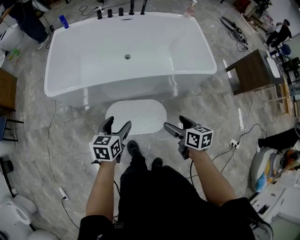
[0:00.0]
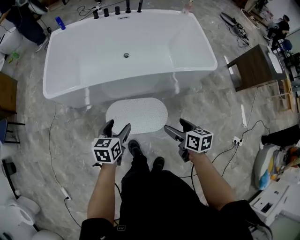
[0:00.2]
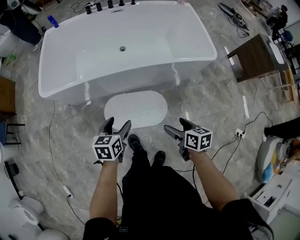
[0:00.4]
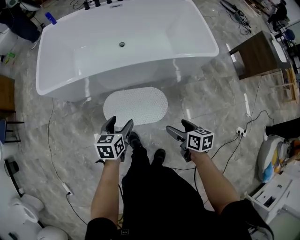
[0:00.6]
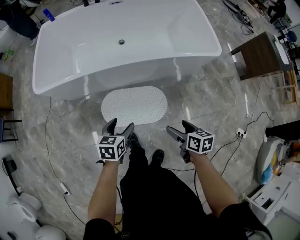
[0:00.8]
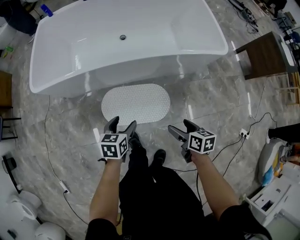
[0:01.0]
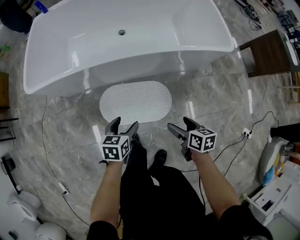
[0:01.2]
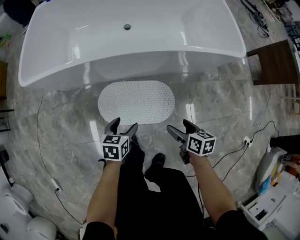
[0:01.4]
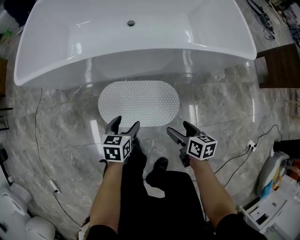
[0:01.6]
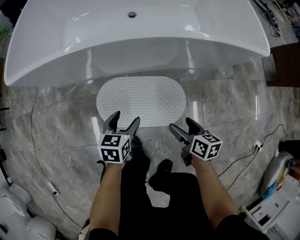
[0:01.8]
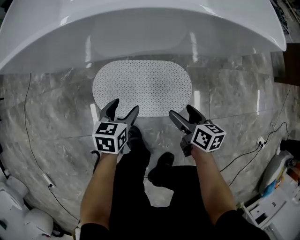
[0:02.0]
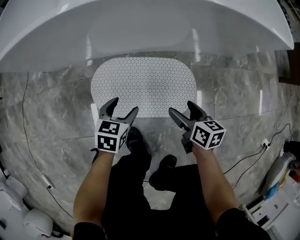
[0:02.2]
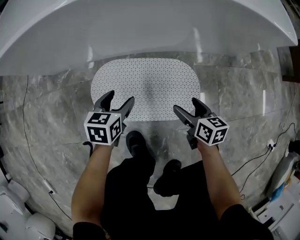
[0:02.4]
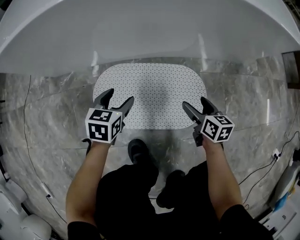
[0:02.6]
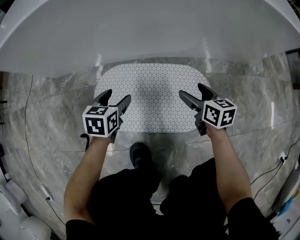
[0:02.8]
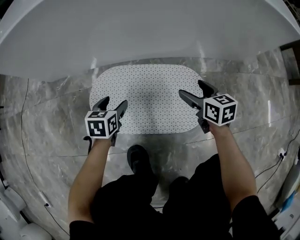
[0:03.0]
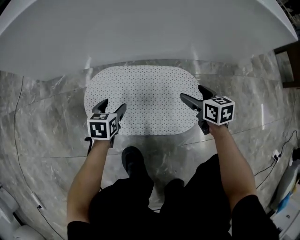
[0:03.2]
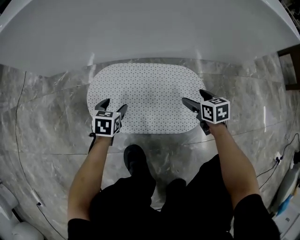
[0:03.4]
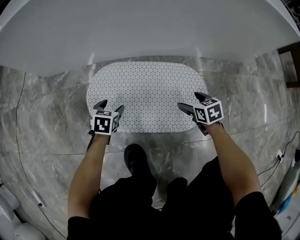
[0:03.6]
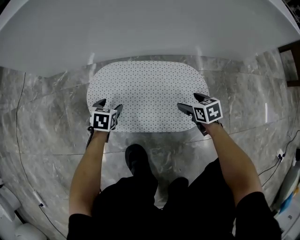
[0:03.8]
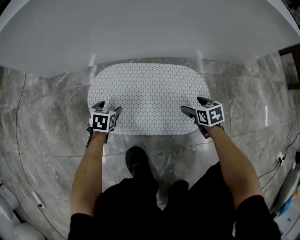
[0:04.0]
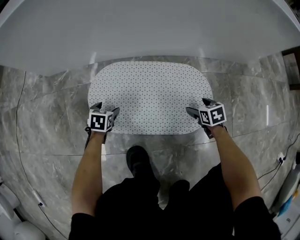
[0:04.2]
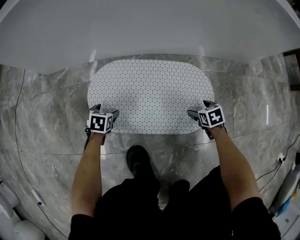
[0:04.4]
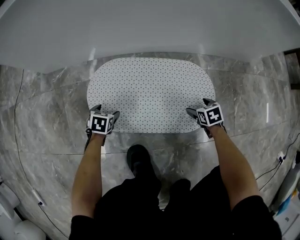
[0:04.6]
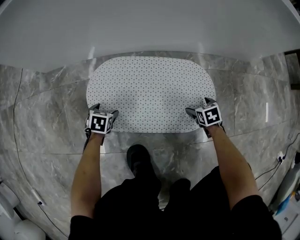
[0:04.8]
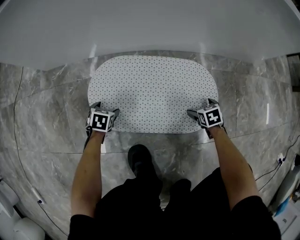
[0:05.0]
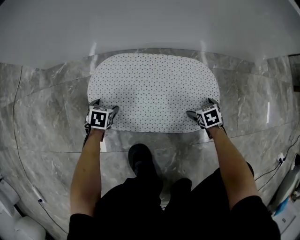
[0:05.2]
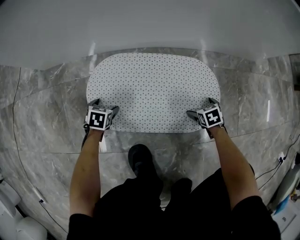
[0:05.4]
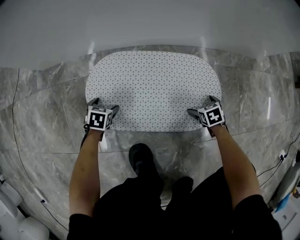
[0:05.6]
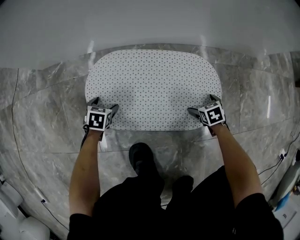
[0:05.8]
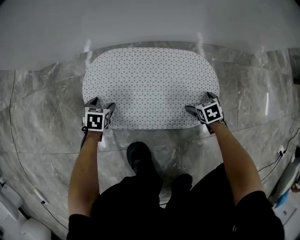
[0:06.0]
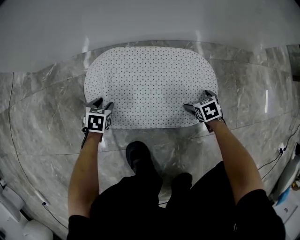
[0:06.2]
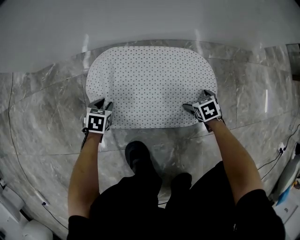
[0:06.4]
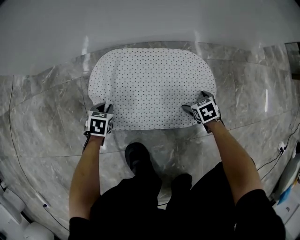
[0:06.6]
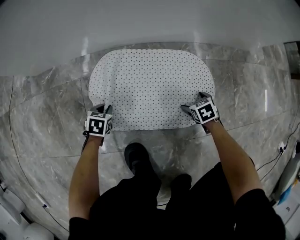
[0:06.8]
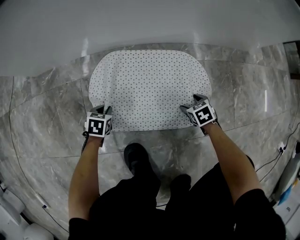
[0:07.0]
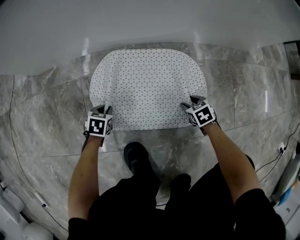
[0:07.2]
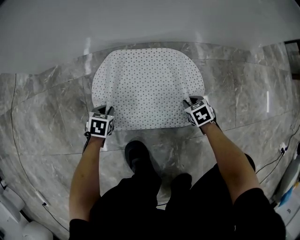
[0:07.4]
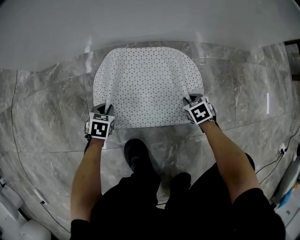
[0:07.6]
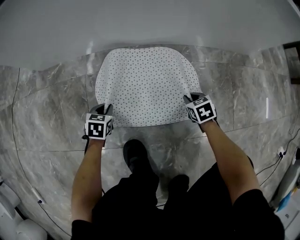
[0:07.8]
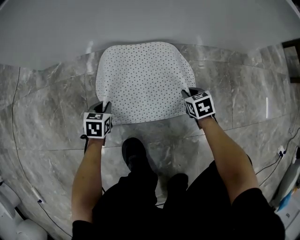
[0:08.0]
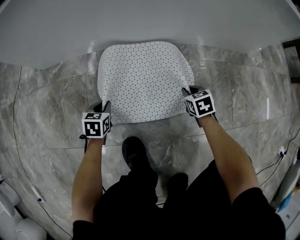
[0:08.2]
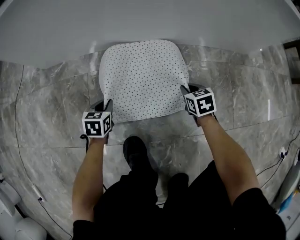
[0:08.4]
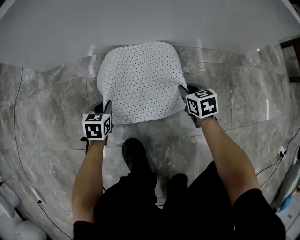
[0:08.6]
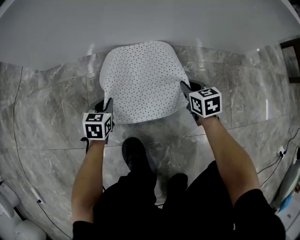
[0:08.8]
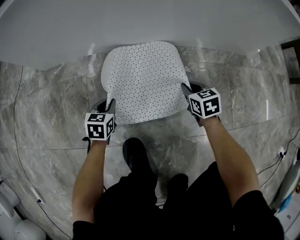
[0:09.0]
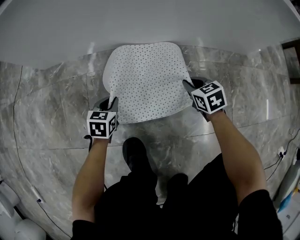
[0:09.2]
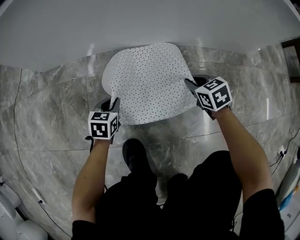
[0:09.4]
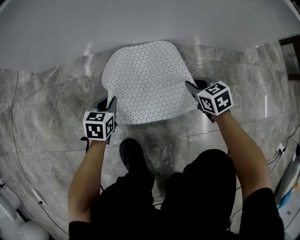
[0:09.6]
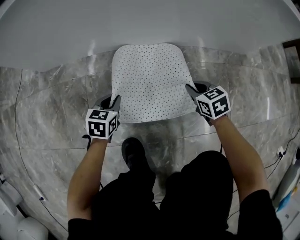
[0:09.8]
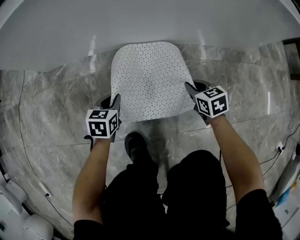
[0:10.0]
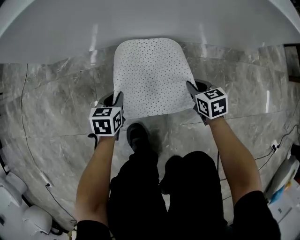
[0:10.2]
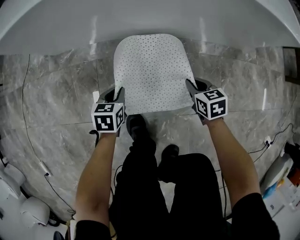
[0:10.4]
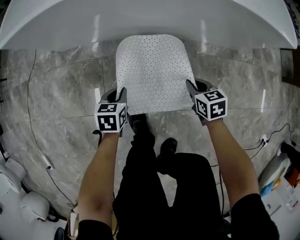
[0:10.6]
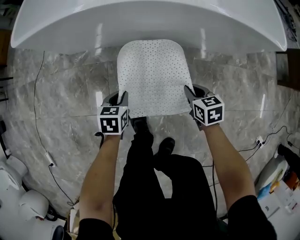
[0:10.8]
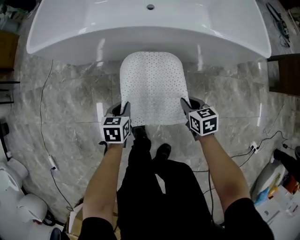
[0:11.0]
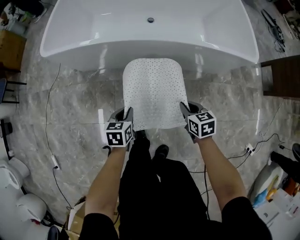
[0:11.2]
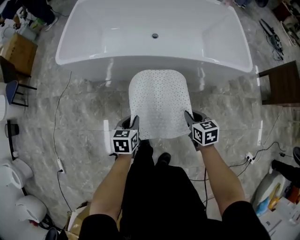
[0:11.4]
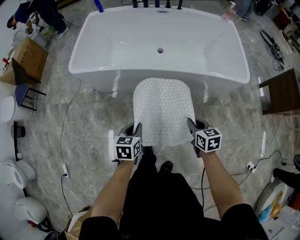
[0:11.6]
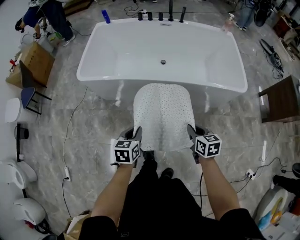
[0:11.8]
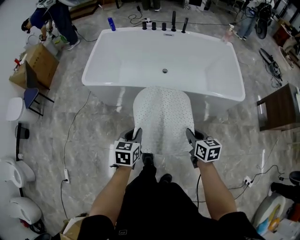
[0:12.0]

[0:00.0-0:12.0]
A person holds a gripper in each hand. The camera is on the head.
0.0 to 1.6 s: The two grippers go roughly 30 cm downward.
1.6 to 3.0 s: The right gripper moves downward and forward, about 30 cm, and rotates about 20 degrees, while the left gripper is displaced downward by some 30 cm.
3.0 to 4.4 s: The right gripper travels downward and backward by approximately 20 cm, and turns by roughly 30 degrees. The left gripper moves downward and to the left, some 20 cm.
4.4 to 6.0 s: The grippers move only a little.
6.0 to 7.6 s: The right gripper closes up. The left gripper closes up.
7.6 to 9.0 s: The right gripper goes about 10 cm upward and forward, and rotates some 20 degrees. The left gripper shifts some 10 cm upward.
9.0 to 10.4 s: The two grippers go roughly 15 cm upward.
10.4 to 12.0 s: Both grippers move upward, approximately 50 cm. The right gripper changes its angle by roughly 20 degrees.

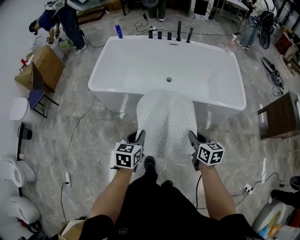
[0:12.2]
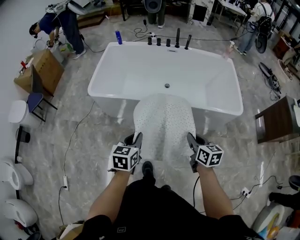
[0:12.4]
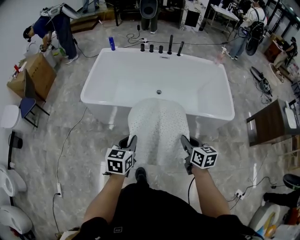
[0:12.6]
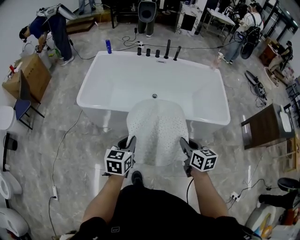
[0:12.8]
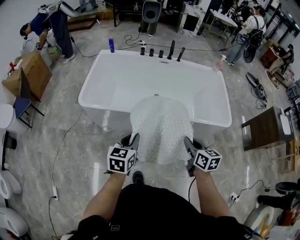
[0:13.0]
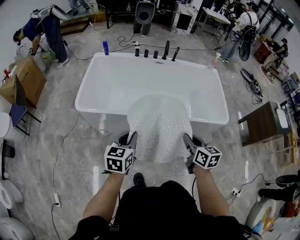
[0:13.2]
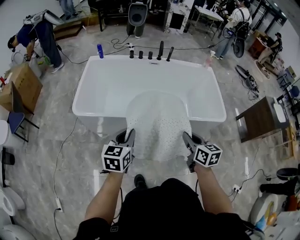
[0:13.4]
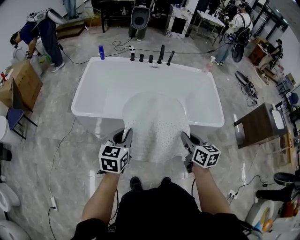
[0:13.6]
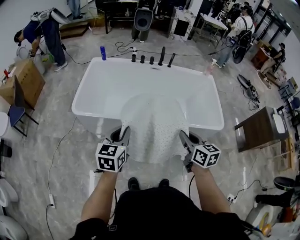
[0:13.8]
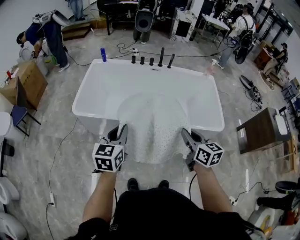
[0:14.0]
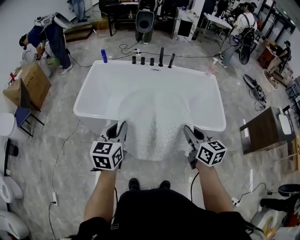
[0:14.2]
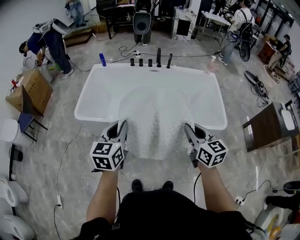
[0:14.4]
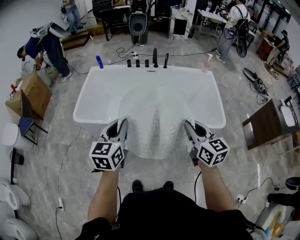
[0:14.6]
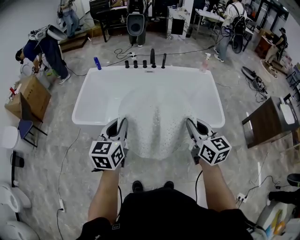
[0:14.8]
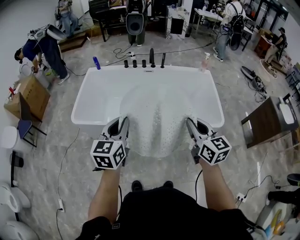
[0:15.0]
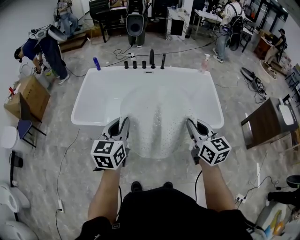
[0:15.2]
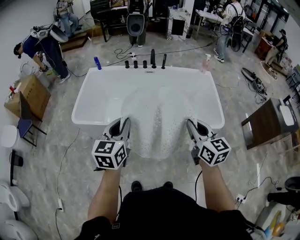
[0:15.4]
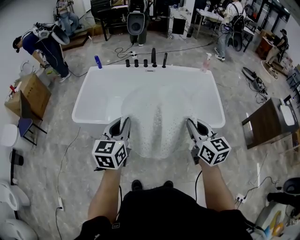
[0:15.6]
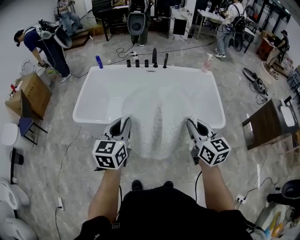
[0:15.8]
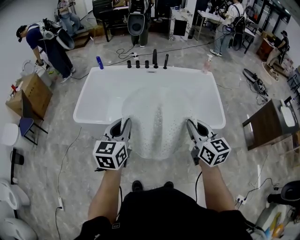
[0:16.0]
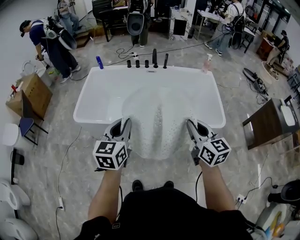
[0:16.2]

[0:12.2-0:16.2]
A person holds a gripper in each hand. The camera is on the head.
12.2 to 13.6 s: The left gripper is displaced forward and upward by approximately 15 cm, while the right gripper goes some 15 cm upward and forward.
13.6 to 14.8 s: Both grippers move upward and to the right, about 15 cm.
14.8 to 16.2 s: Both grippers stay put.

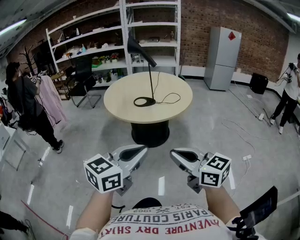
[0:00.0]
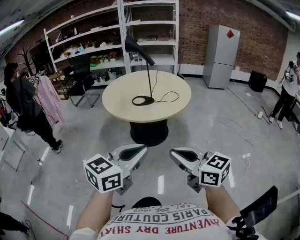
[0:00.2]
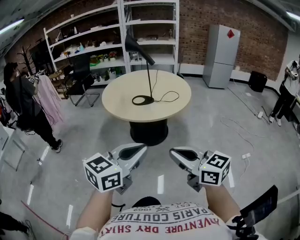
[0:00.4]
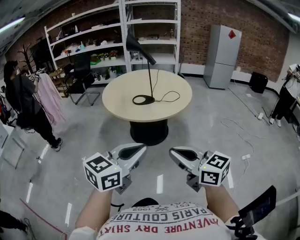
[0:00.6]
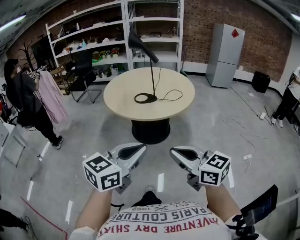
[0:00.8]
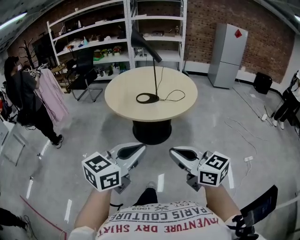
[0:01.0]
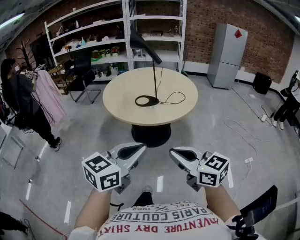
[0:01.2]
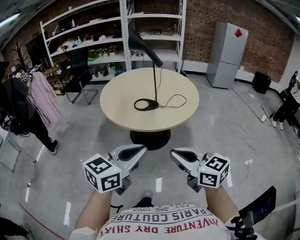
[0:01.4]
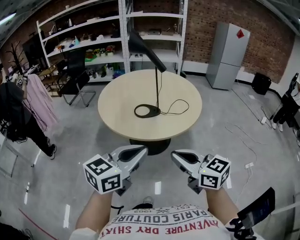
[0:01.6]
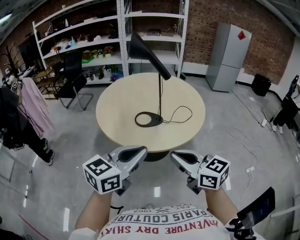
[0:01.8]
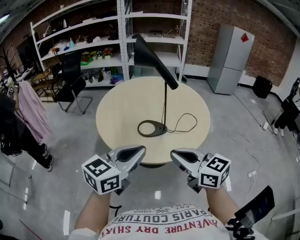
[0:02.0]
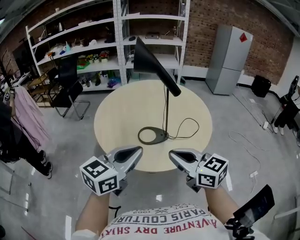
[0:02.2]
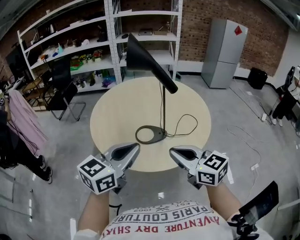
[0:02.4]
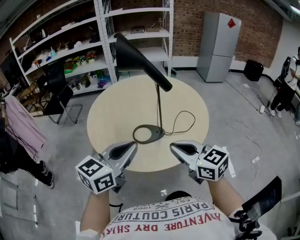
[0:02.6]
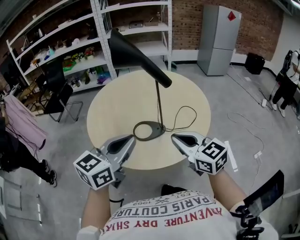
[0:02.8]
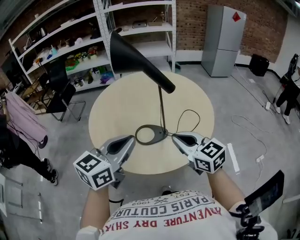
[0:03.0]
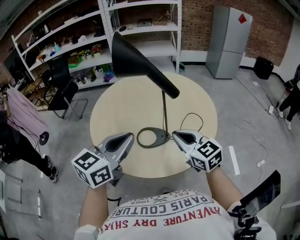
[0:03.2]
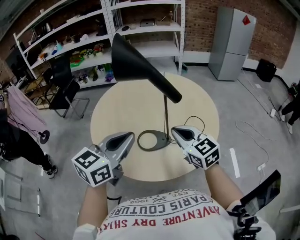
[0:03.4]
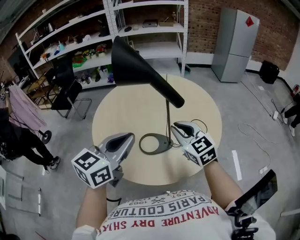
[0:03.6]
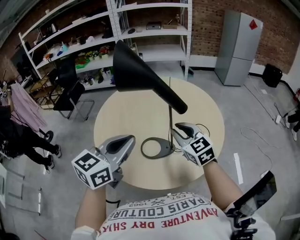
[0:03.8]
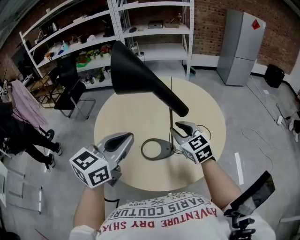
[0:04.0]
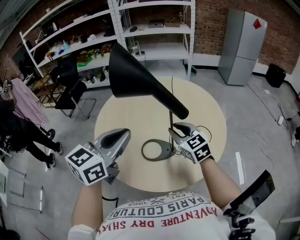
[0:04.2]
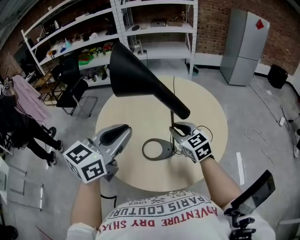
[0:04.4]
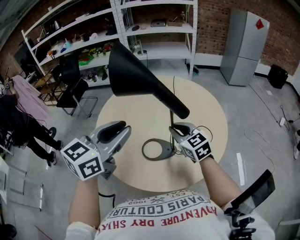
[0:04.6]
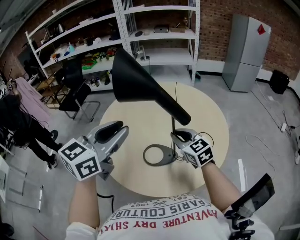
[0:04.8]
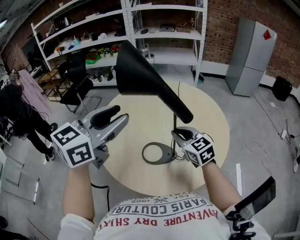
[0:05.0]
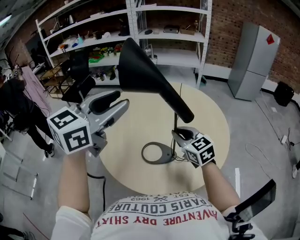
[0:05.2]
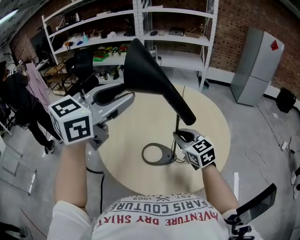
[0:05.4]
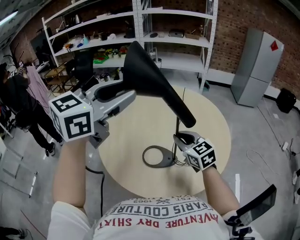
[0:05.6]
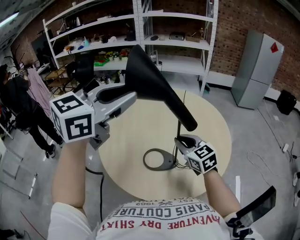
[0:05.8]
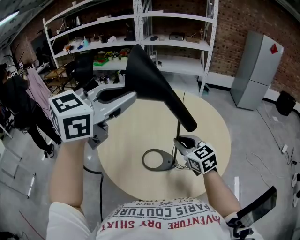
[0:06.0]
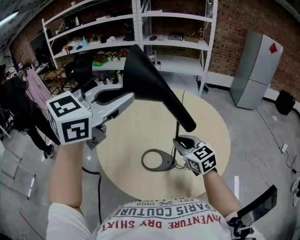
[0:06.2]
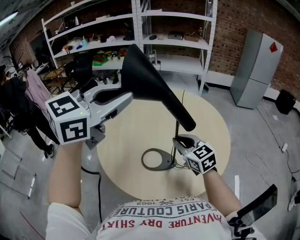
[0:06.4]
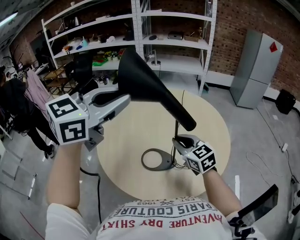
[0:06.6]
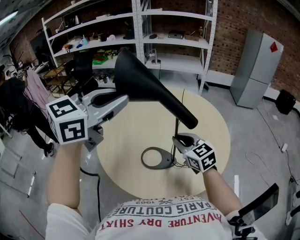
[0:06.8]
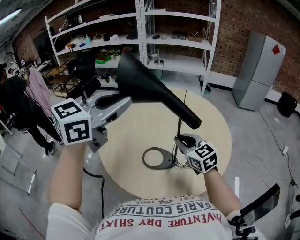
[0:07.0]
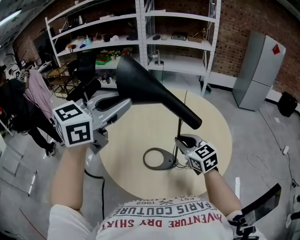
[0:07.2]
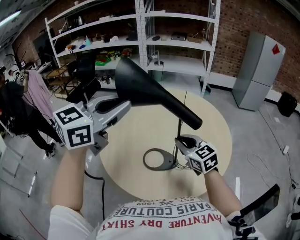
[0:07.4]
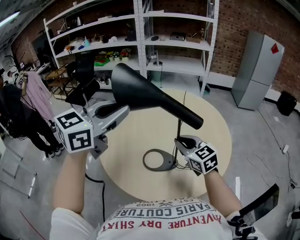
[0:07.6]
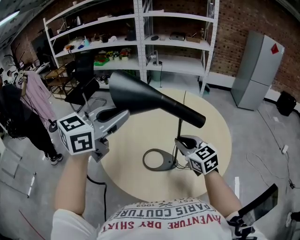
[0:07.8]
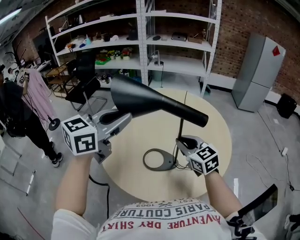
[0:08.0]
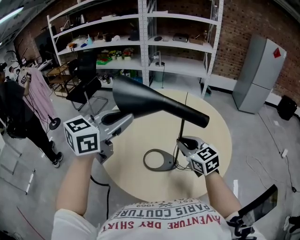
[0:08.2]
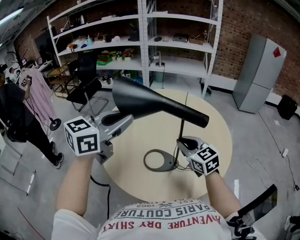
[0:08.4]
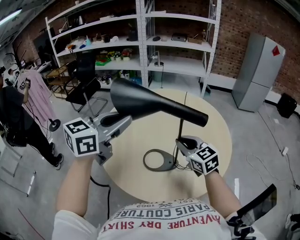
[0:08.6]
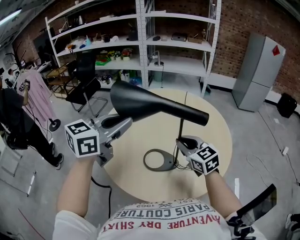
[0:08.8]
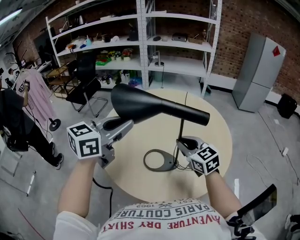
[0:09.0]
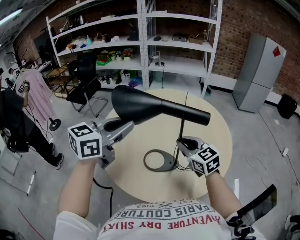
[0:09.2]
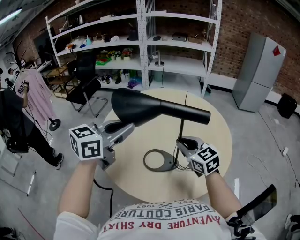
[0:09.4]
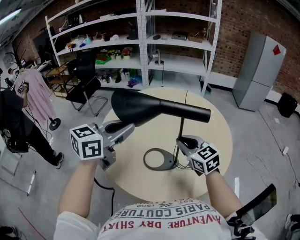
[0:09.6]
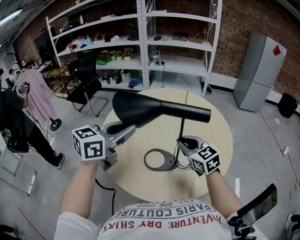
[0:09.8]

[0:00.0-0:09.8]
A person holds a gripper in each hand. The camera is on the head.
0.0 to 1.4 s: The grippers both shift forward by about 15 cm.
1.4 to 2.8 s: The grippers both shift forward by some 35 cm.
2.8 to 4.2 s: The right gripper travels forward by about 20 cm, and opens. The left gripper is displaced forward by some 10 cm.
4.2 to 5.6 s: The left gripper travels upward by some 10 cm, and opens its fingers.
5.6 to 7.0 s: The left gripper closes.
7.0 to 8.4 s: The left gripper heads downward, covering approximately 5 cm.
8.4 to 9.8 s: There are only small adjustments of the grippers.
